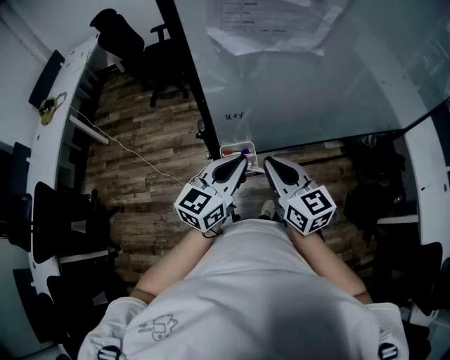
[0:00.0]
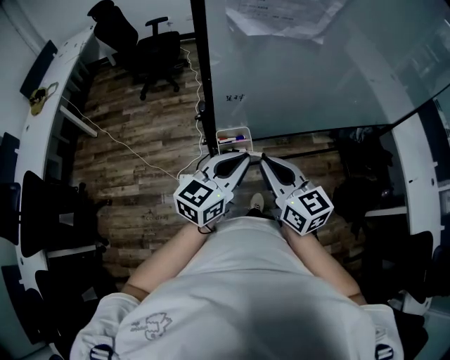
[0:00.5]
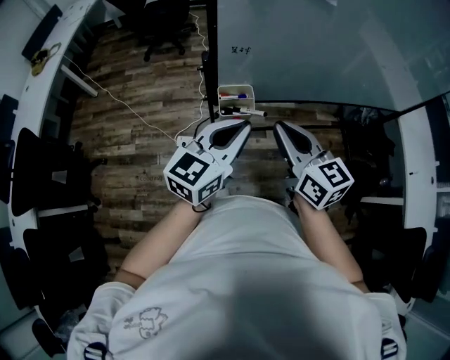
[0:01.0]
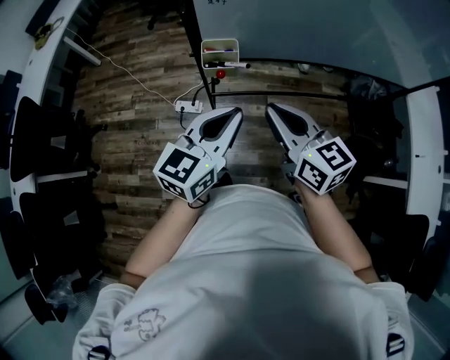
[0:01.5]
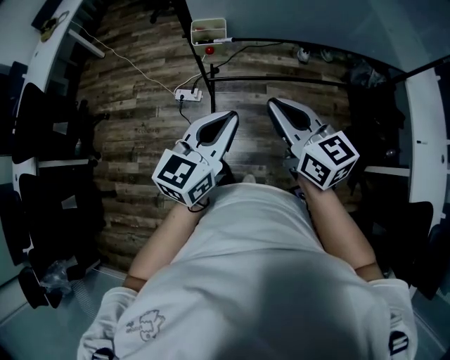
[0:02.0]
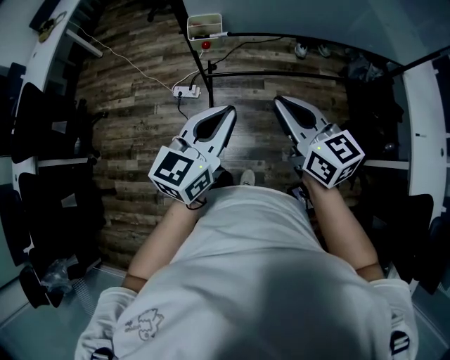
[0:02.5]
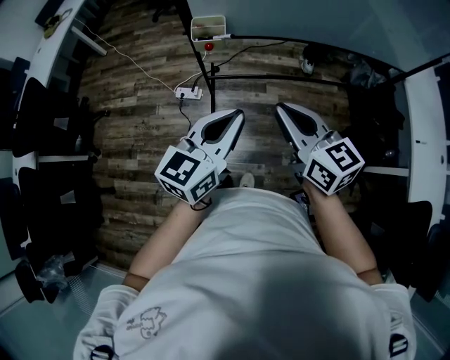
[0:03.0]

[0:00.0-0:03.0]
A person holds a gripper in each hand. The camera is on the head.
0.0 to 1.5 s: The right gripper moves backward and to the right, roughly 15 cm. Meanwhile the left gripper goes roughly 20 cm backward.
1.5 to 3.0 s: Both grippers travel together backward and to the right, some 15 cm.

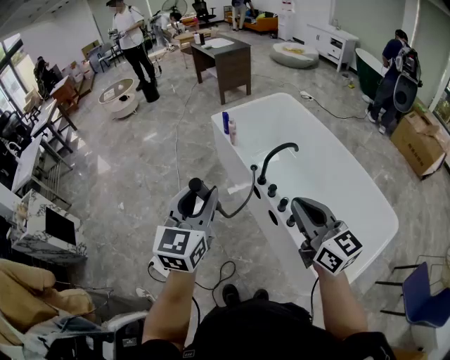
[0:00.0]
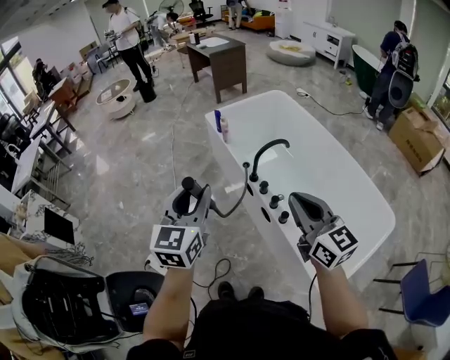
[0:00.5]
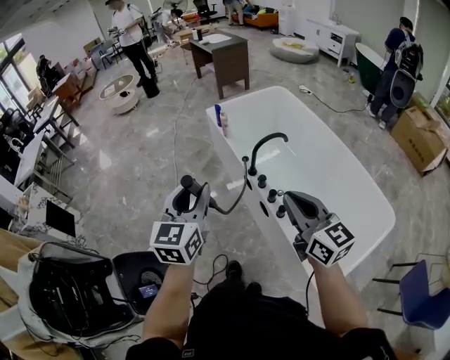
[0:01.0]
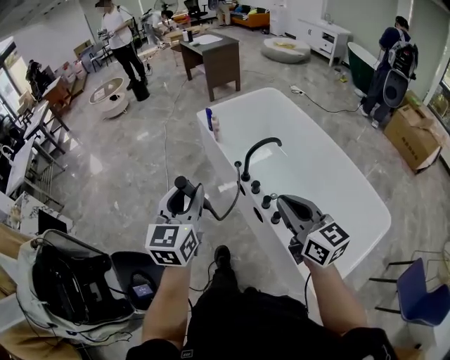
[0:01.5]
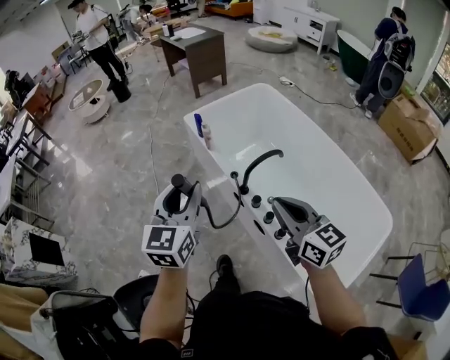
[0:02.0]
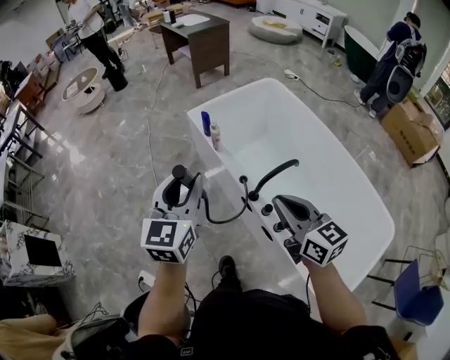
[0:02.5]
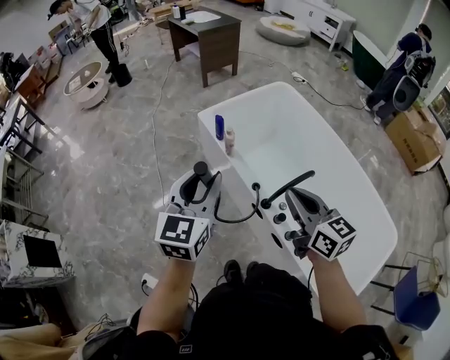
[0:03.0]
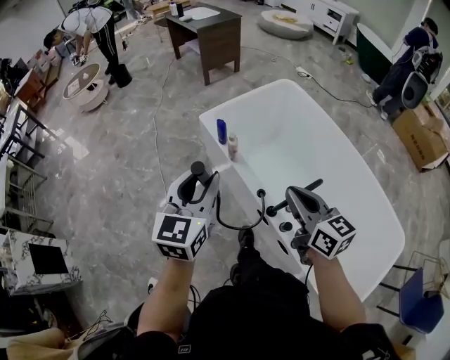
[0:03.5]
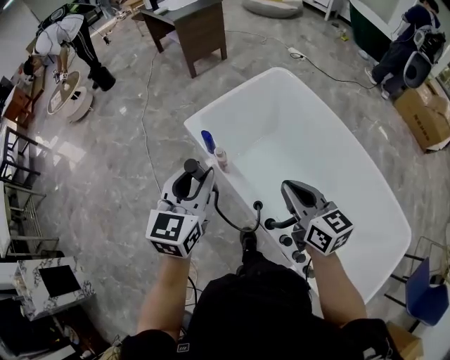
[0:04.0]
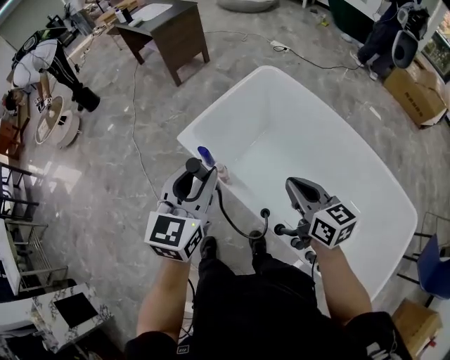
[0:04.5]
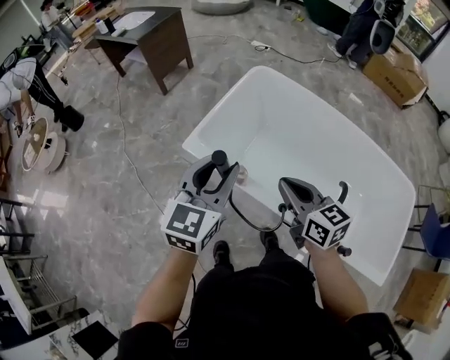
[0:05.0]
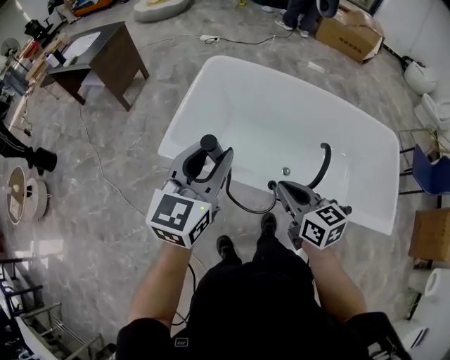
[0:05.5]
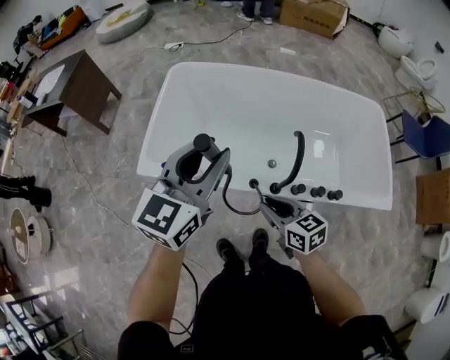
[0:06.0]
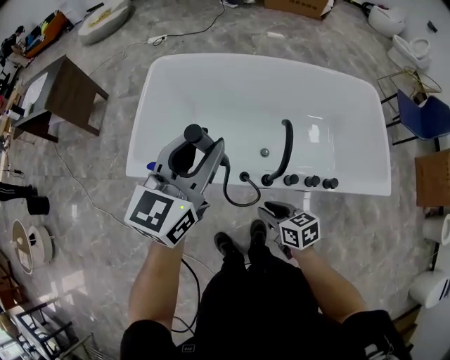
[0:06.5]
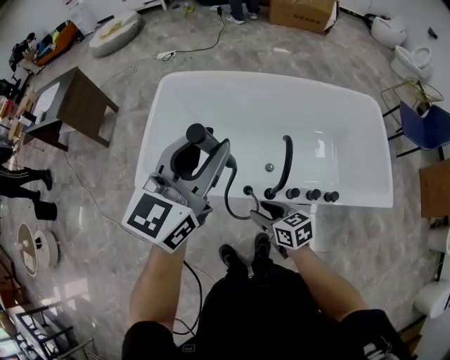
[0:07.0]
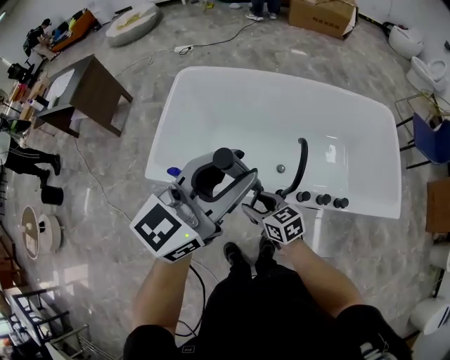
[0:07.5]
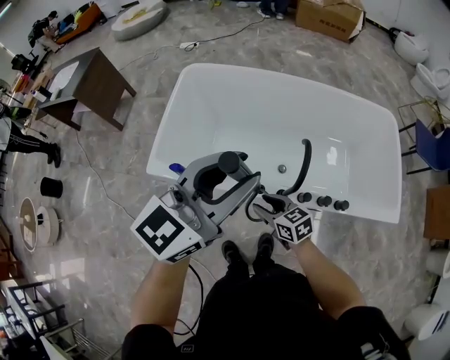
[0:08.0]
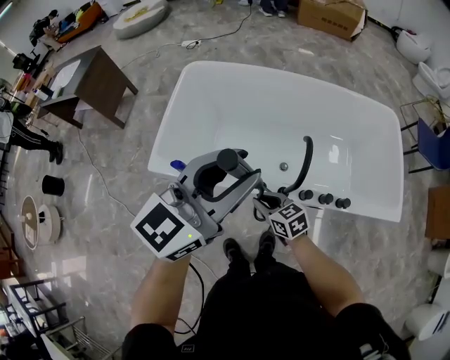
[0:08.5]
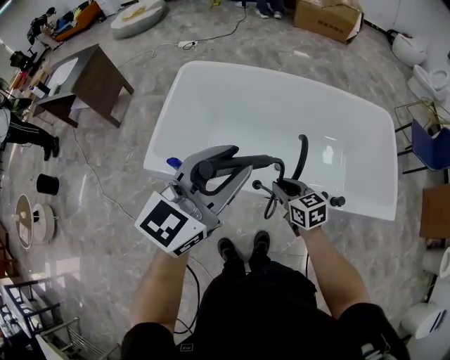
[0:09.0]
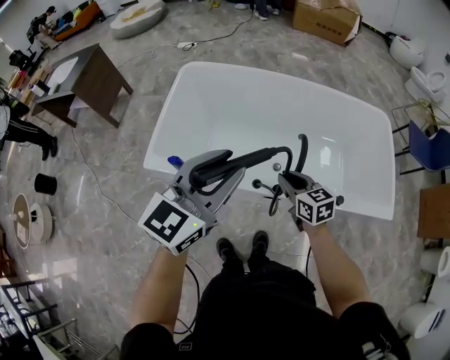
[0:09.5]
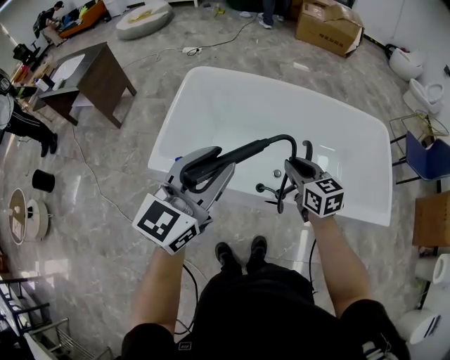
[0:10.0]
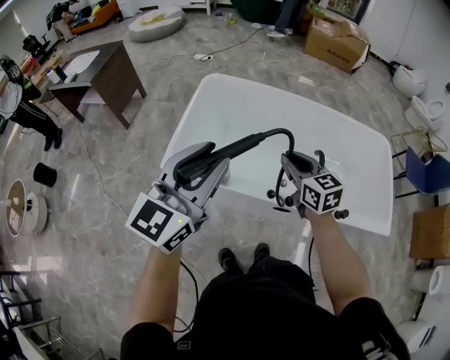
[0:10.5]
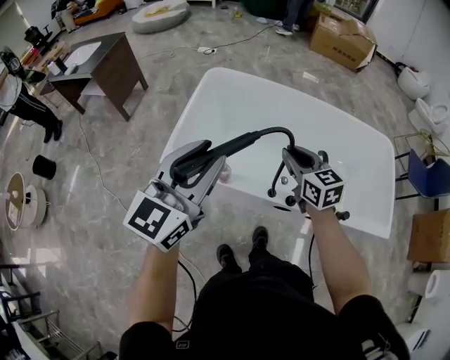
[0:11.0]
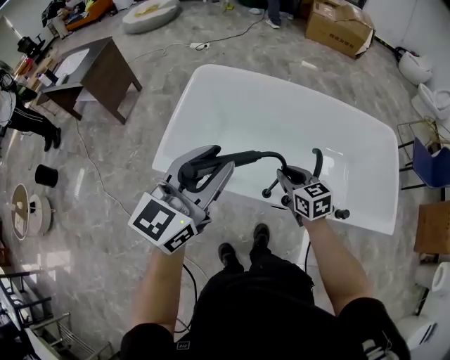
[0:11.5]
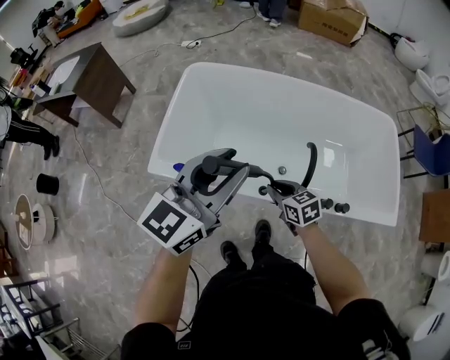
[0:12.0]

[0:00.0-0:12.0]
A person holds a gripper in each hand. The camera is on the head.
0.0 to 2.0 s: The left gripper moves forward, approximately 15 cm; the right gripper goes approximately 15 cm forward and downward.
2.0 to 4.0 s: The grippers both shift forward by about 30 cm.
4.0 to 6.0 s: The left gripper ends up approximately 10 cm from where it was, and turns by some 60 degrees, while the right gripper ends up roughly 15 cm from where it was, and changes its angle by about 40 degrees.
6.0 to 8.0 s: The left gripper shifts some 5 cm upward. The right gripper is displaced downward by approximately 5 cm.
8.0 to 10.0 s: The right gripper heads upward, forward and to the right, covering some 15 cm, swivels approximately 20 degrees, and closes, while the left gripper is displaced to the left by some 5 cm.
10.0 to 12.0 s: The right gripper moves downward, about 10 cm. Meanwhile the left gripper moves roughly 10 cm to the left and comes back.

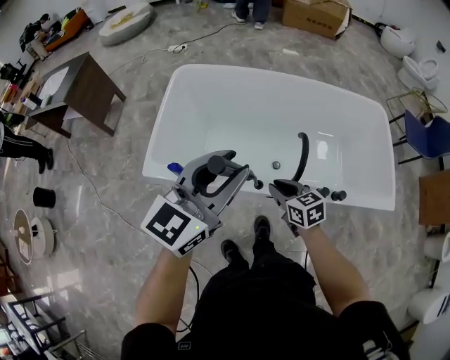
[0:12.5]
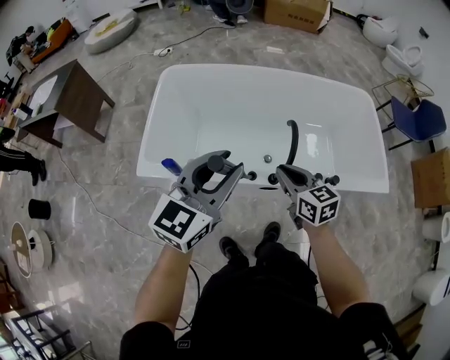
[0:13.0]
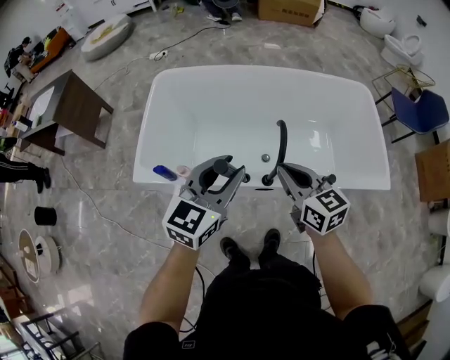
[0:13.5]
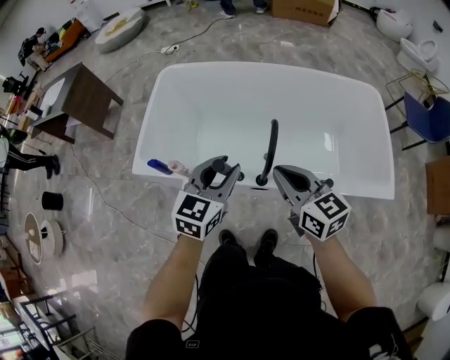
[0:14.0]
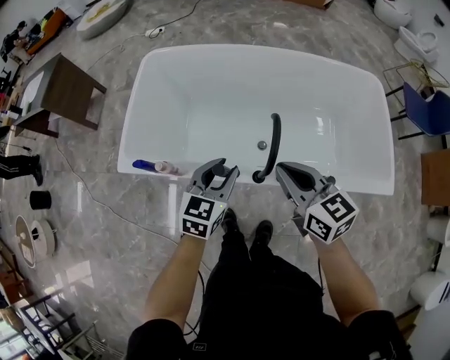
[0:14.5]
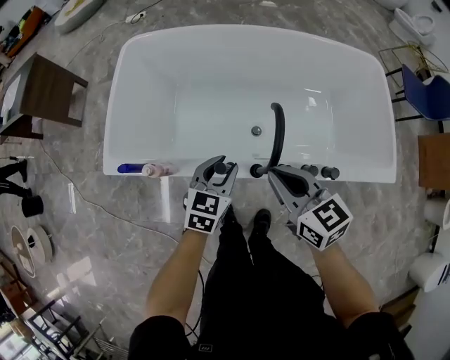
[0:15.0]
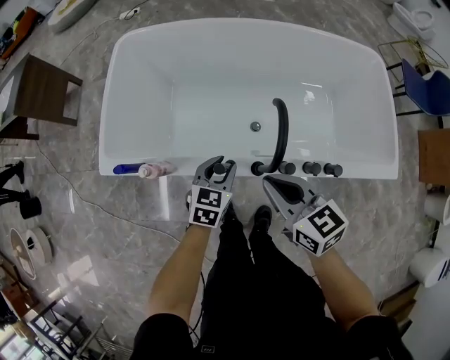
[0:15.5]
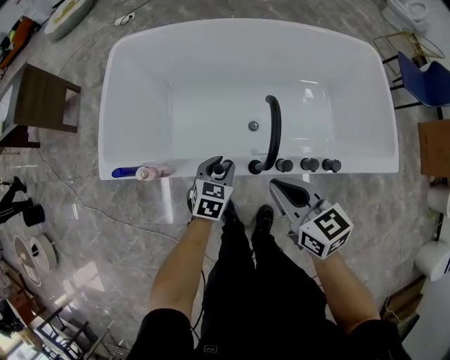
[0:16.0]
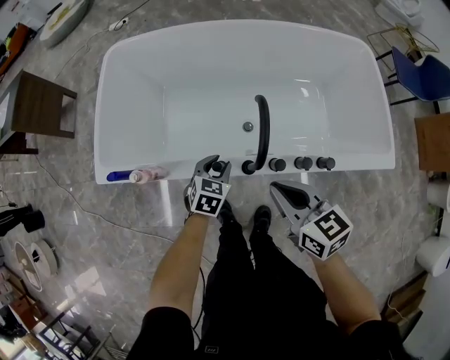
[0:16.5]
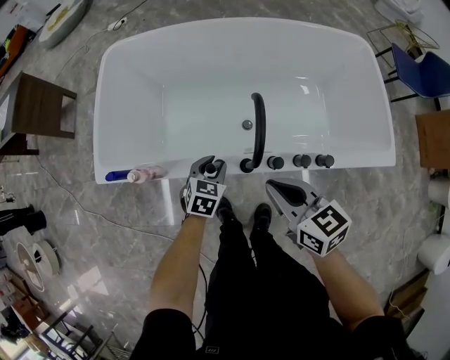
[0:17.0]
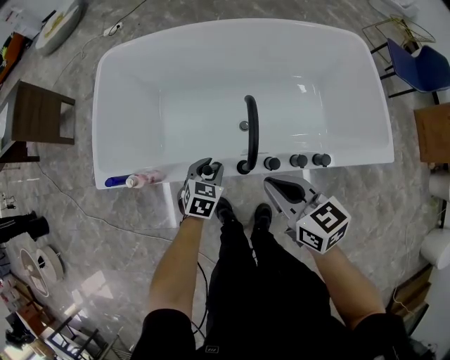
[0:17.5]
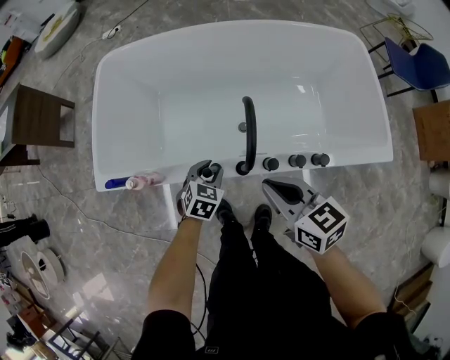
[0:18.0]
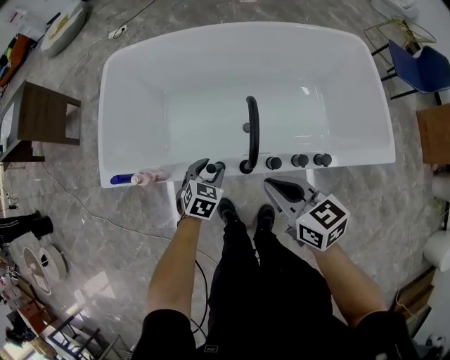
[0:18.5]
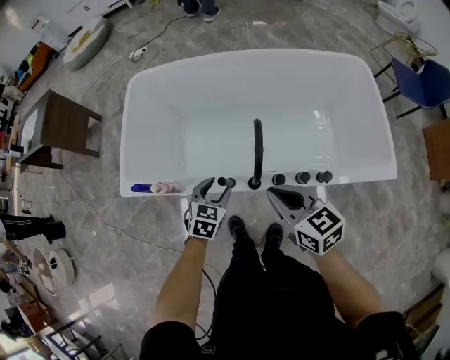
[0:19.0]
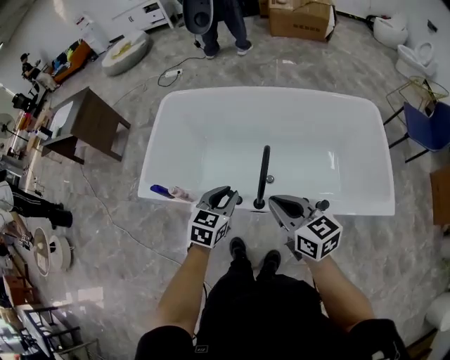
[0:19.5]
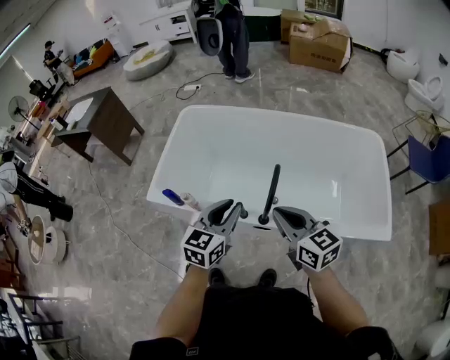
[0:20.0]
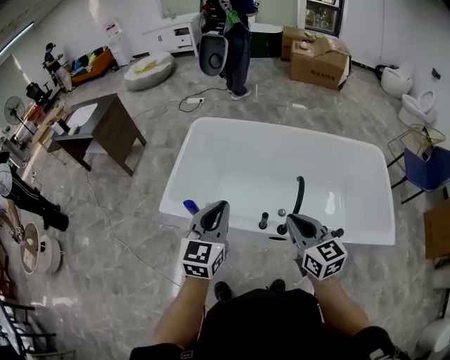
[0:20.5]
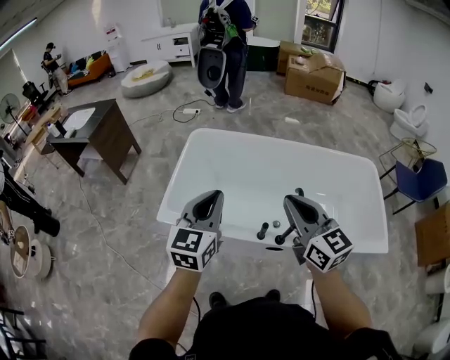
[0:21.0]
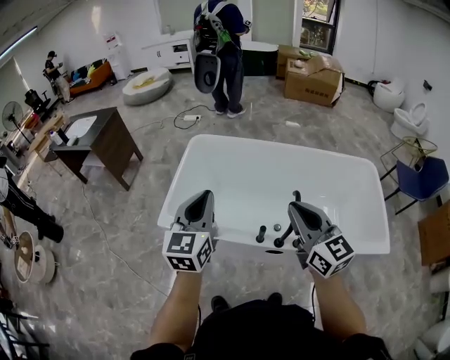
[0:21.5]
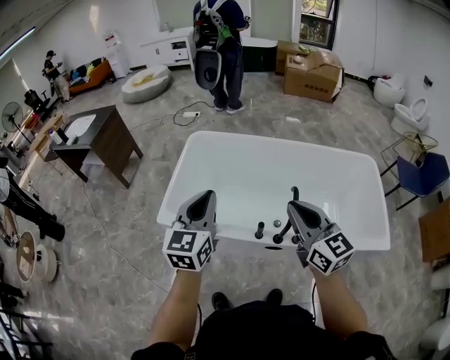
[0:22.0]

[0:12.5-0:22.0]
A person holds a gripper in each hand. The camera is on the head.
12.5 to 14.5 s: The left gripper travels downward and to the right by approximately 25 cm, and rotates some 30 degrees. Meanwhile the right gripper shifts some 15 cm upward and to the right.
14.5 to 16.5 s: The right gripper heads downward and backward, covering approximately 10 cm. The left gripper goes roughly 20 cm downward, and turns by some 20 degrees.
16.5 to 18.0 s: The grippers move only a little.
18.0 to 20.0 s: The right gripper travels upward by about 10 cm. Meanwhile the left gripper travels upward by roughly 30 cm, and tilts its fingers approximately 30 degrees upward.
20.0 to 22.0 s: The left gripper shifts some 20 cm to the left and upward. The right gripper is displaced upward and to the left by about 10 cm.

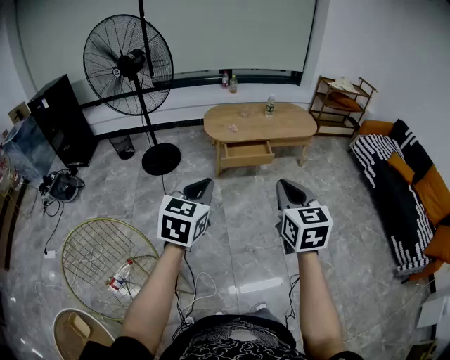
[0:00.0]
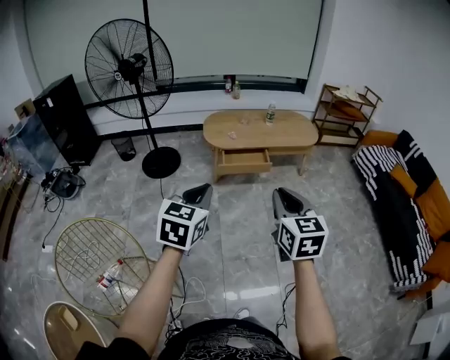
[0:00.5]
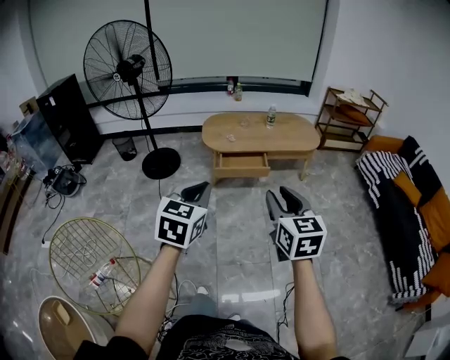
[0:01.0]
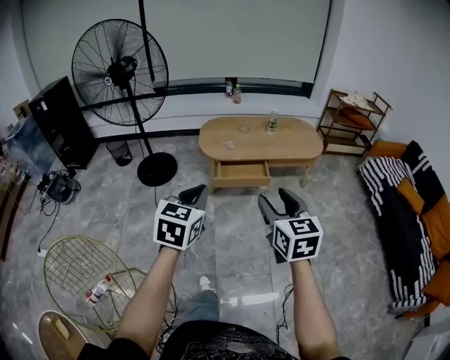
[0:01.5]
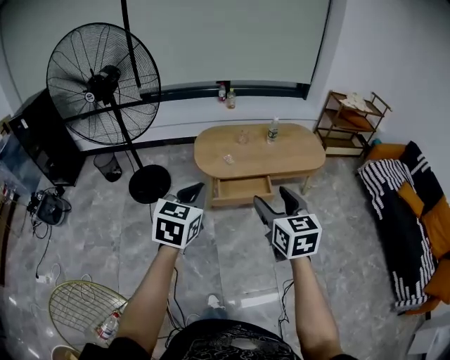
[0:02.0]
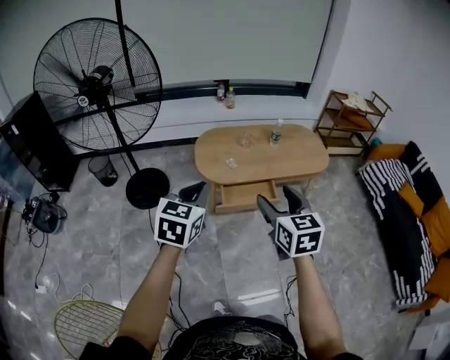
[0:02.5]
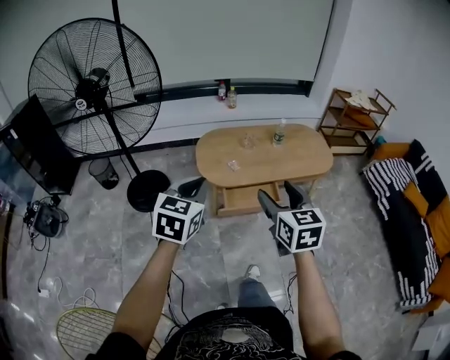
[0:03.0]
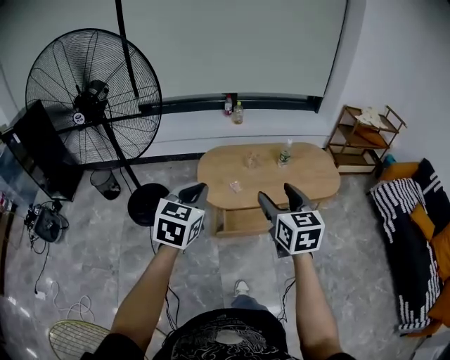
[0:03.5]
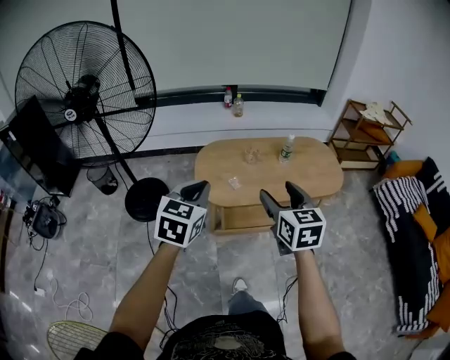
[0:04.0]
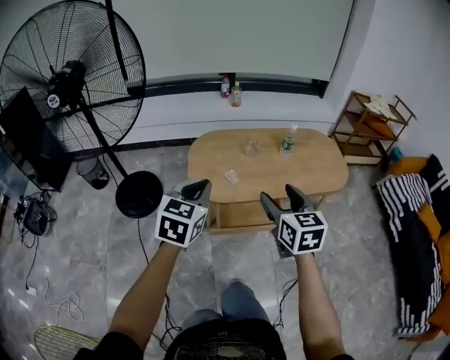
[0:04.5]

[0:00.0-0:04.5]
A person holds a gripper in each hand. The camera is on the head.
0.0 to 2.0 s: Both grippers travel together forward, roughly 30 cm. The right gripper opens up.
2.0 to 4.5 s: The grippers both shift forward and downward by about 30 cm.
